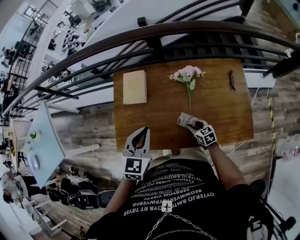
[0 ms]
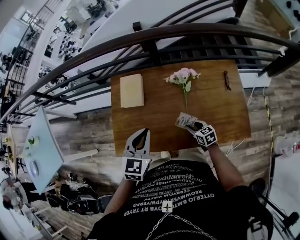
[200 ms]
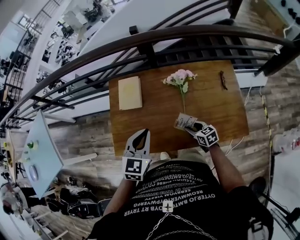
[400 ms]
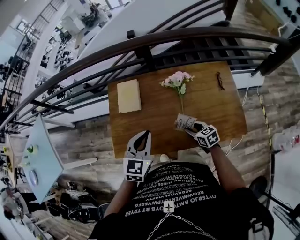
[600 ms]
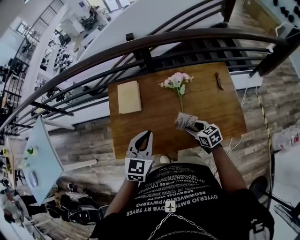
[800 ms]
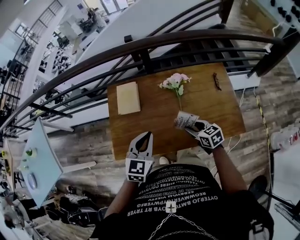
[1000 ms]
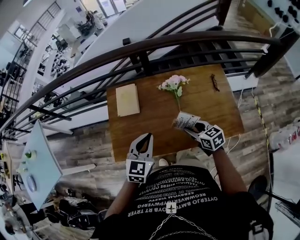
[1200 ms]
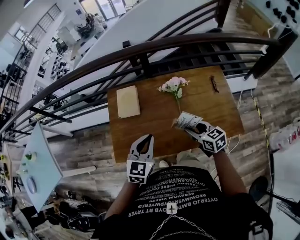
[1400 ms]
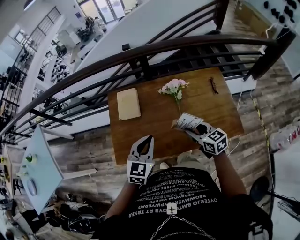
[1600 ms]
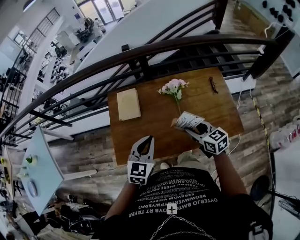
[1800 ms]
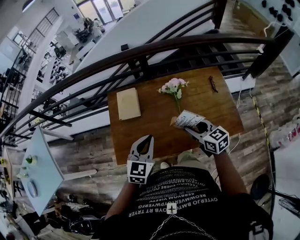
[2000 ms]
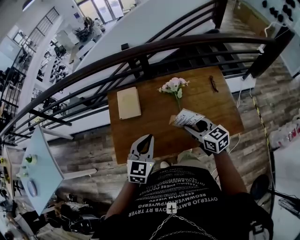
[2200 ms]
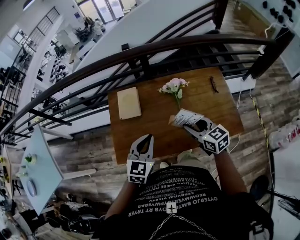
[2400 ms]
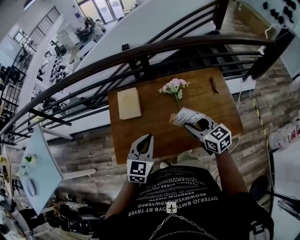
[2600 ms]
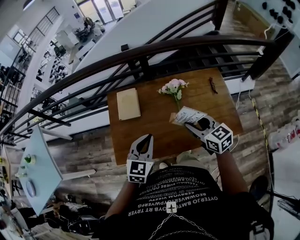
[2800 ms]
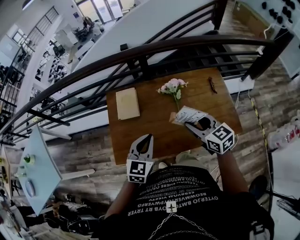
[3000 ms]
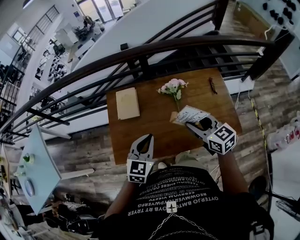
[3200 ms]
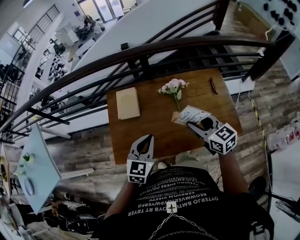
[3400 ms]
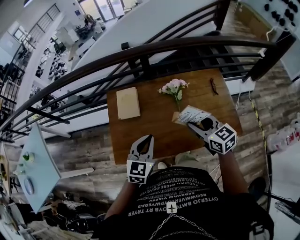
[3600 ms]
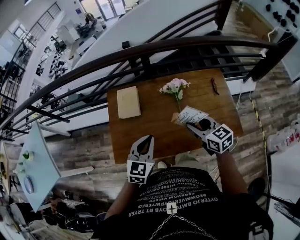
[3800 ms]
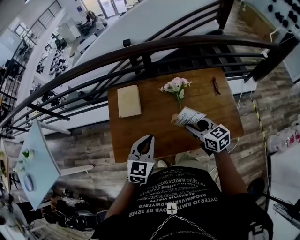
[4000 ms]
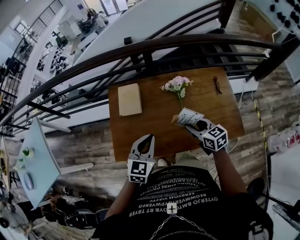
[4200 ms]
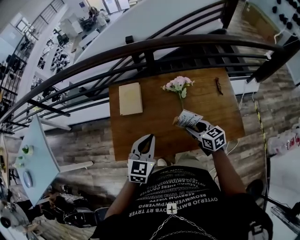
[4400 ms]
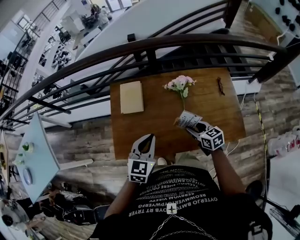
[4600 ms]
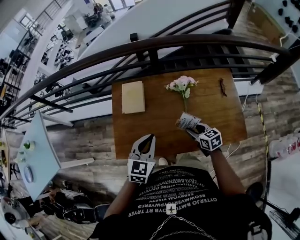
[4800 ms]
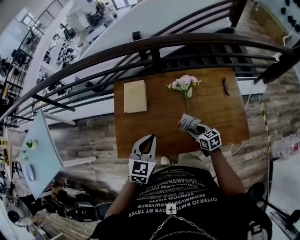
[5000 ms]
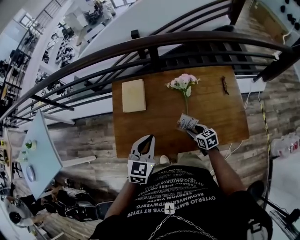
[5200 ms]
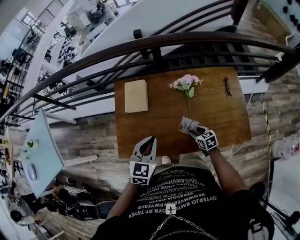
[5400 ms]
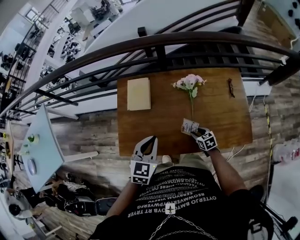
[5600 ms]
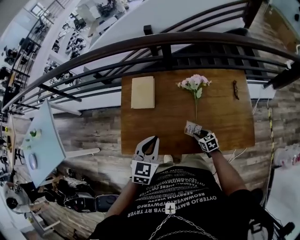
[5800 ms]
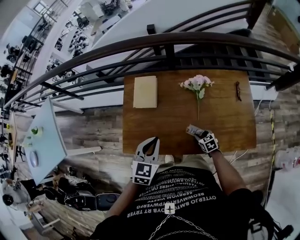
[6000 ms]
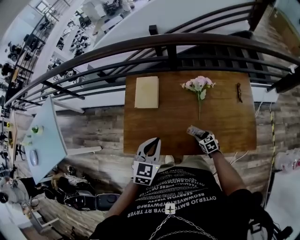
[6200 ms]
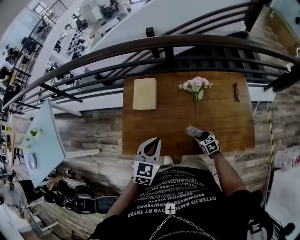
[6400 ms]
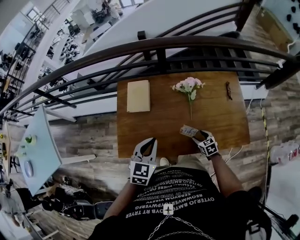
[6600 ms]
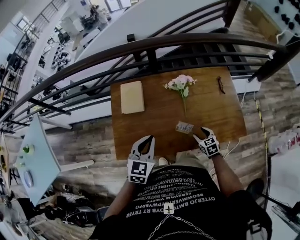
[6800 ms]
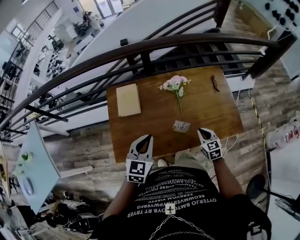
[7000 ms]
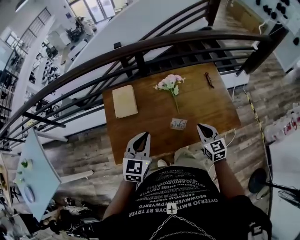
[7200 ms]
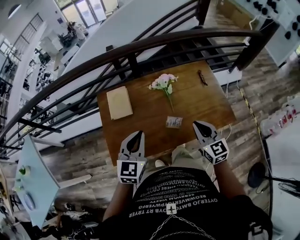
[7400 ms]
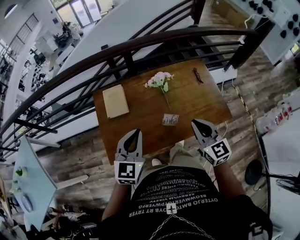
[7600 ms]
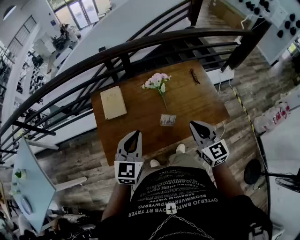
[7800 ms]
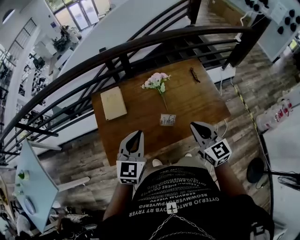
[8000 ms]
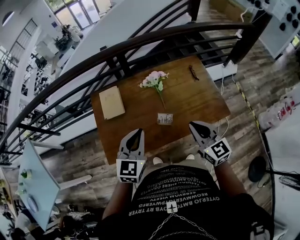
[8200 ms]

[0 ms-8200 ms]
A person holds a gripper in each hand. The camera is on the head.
0 ms to 1600 ms: The left gripper moves backward, some 5 cm. Meanwhile the right gripper heads upward, covering about 25 cm.
1600 ms to 3200 ms: The right gripper shifts roughly 10 cm upward.
3200 ms to 5000 ms: The right gripper travels downward by approximately 25 cm, and rotates about 20 degrees.
5000 ms to 6600 ms: The right gripper is displaced downward by approximately 10 cm.
6600 ms to 8200 ms: The right gripper goes about 35 cm upward, angles its fingers upward, by approximately 40 degrees, and closes its fingers, while the left gripper travels upward and to the right by about 10 cm.

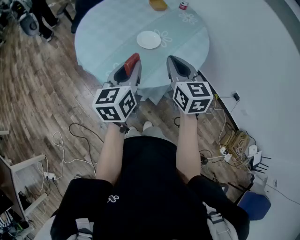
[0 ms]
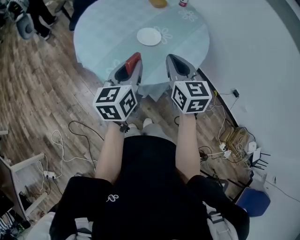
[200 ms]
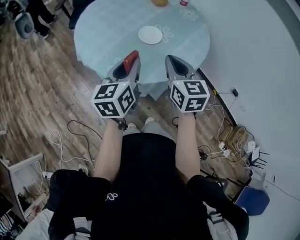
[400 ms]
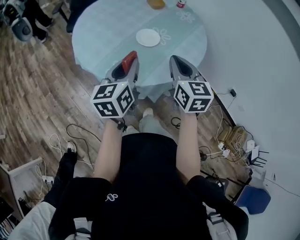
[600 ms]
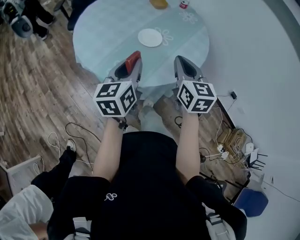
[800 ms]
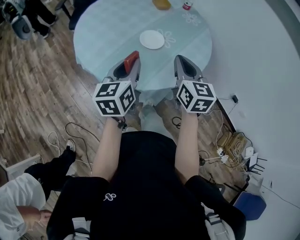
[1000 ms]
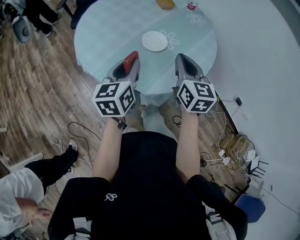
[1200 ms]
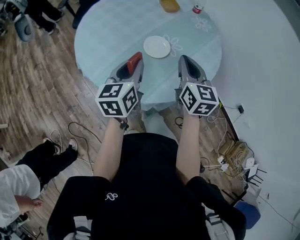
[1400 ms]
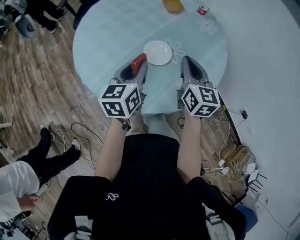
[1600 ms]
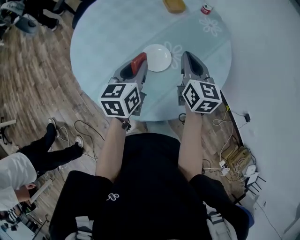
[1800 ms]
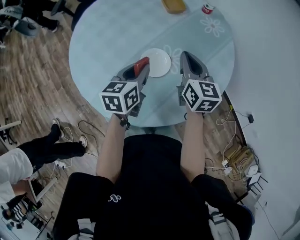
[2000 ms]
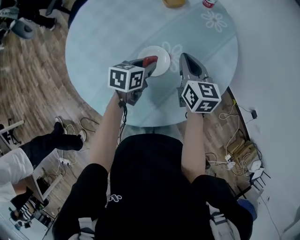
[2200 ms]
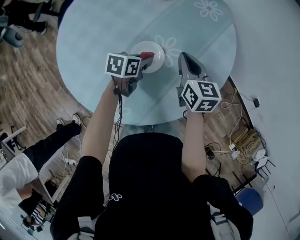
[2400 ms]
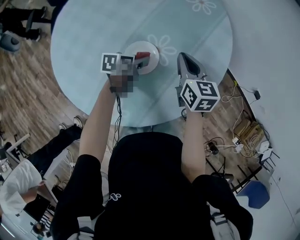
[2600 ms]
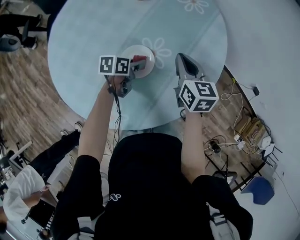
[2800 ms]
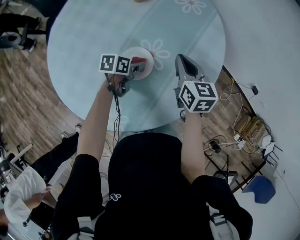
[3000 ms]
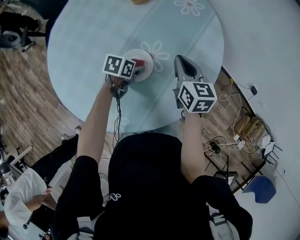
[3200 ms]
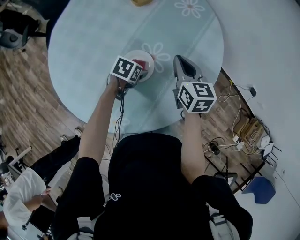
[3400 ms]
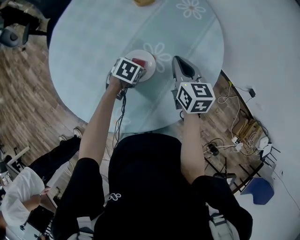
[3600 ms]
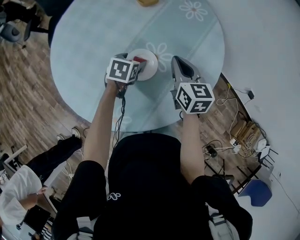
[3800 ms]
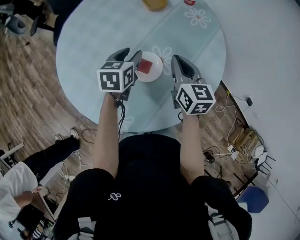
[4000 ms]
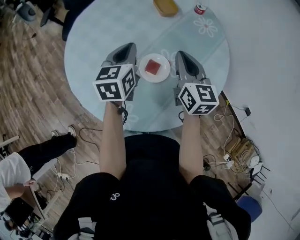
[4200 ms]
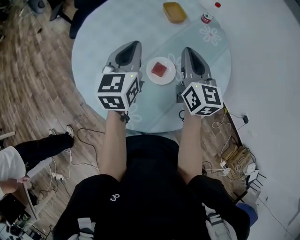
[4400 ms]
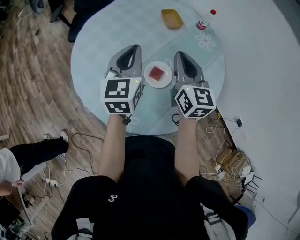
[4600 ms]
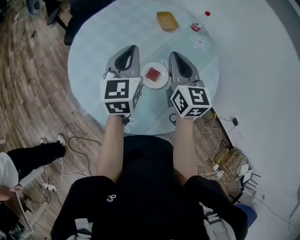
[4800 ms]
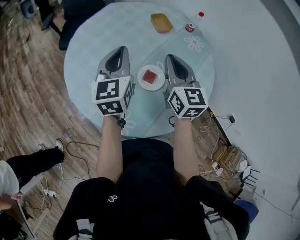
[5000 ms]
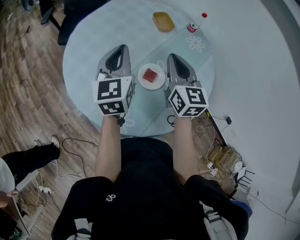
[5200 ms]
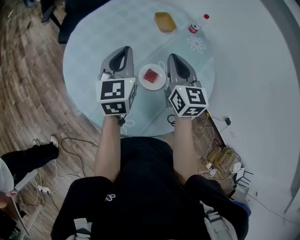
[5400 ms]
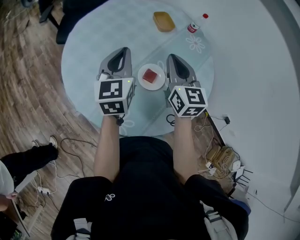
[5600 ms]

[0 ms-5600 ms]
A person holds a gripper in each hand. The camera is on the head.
0 ms to 1400 ms: The right gripper goes some 15 cm forward, while the left gripper shifts roughly 15 cm forward and downward.
1400 ms to 2800 ms: The right gripper moves approximately 25 cm, and changes its angle by some 20 degrees; the left gripper changes place by some 35 cm, and angles its fingers downward, by about 30 degrees.
2800 ms to 4200 ms: The left gripper moves upward, some 25 cm, turns by about 50 degrees, and opens, then closes again, while the right gripper shifts roughly 10 cm upward.
4200 ms to 5600 ms: Both grippers move to the left and upward, some 10 cm.

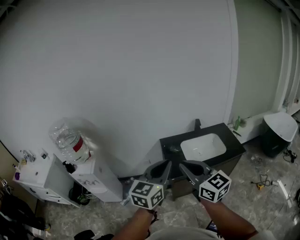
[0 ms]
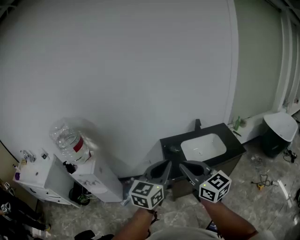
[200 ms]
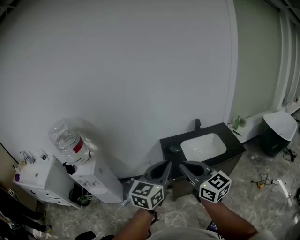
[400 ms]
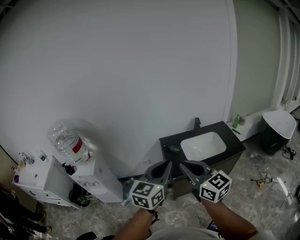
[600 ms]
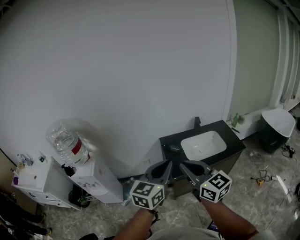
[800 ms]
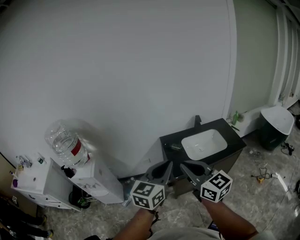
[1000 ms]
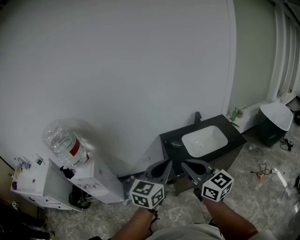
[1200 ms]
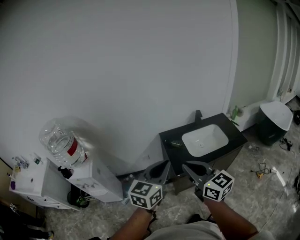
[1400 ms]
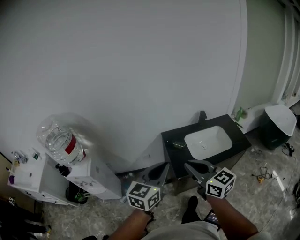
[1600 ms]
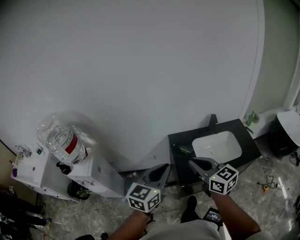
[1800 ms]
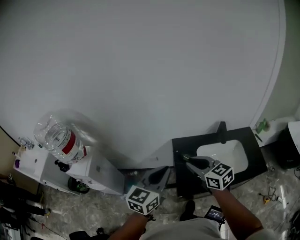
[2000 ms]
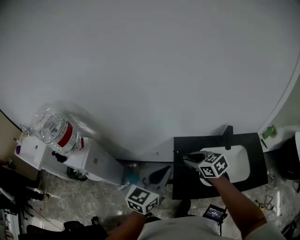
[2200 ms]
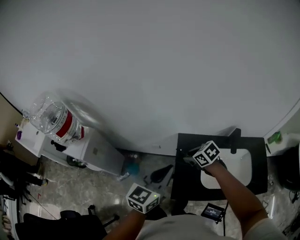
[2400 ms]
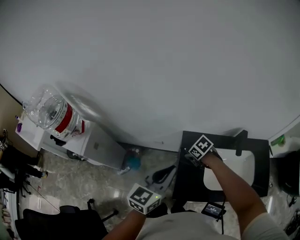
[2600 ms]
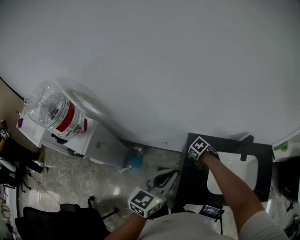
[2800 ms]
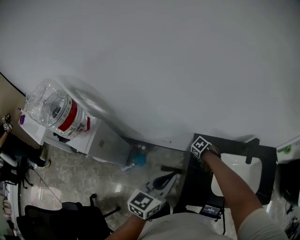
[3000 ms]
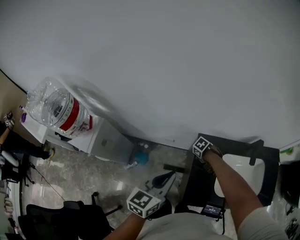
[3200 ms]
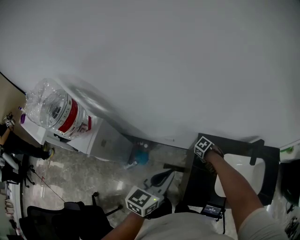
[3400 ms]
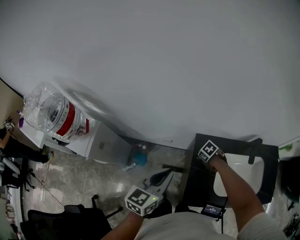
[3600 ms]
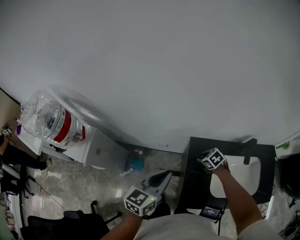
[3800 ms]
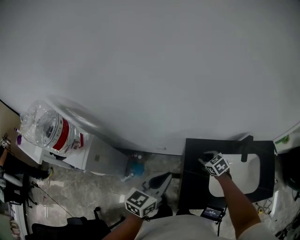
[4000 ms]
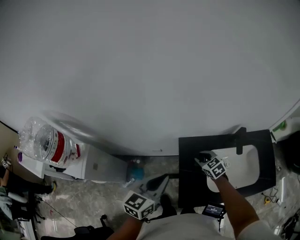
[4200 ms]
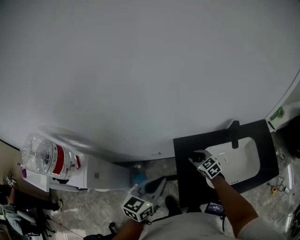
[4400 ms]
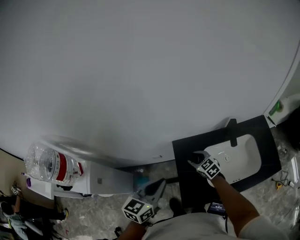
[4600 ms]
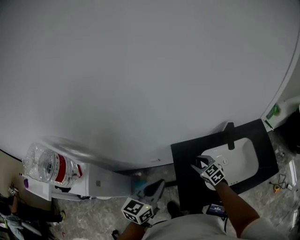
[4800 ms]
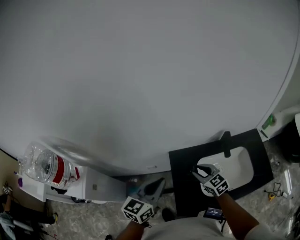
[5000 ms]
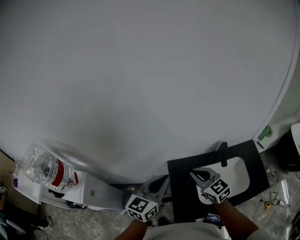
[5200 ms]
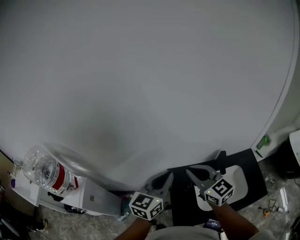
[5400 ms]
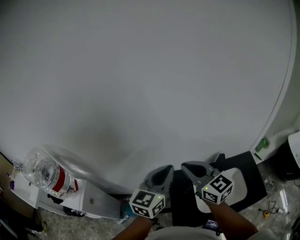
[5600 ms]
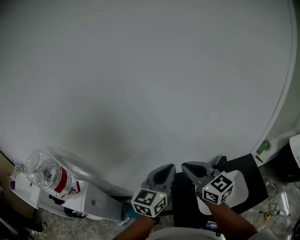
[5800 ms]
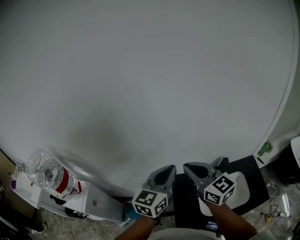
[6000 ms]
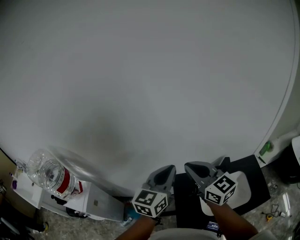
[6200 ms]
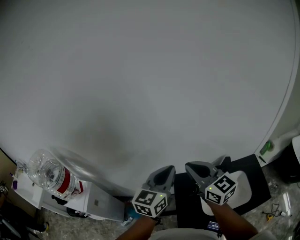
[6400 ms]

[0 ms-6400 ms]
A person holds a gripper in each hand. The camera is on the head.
0 ms to 1600 ms: The left gripper is displaced forward, downward and to the left by roughly 15 cm. The right gripper heads forward and downward, covering approximately 15 cm.
1600 ms to 3200 ms: The left gripper ends up approximately 35 cm from where it was, and changes its angle by approximately 20 degrees. The right gripper shifts approximately 50 cm downward, tips its fingers downward by about 70 degrees, and opens.
3200 ms to 4800 ms: The right gripper shifts approximately 15 cm upward, and points its fingers some 40 degrees further upward. The left gripper ends up some 10 cm from where it was.
4800 ms to 6400 ms: The left gripper moves upward and forward, some 20 cm. Meanwhile the right gripper is displaced upward by roughly 35 cm, tilts its fingers some 30 degrees upward, and closes its fingers.

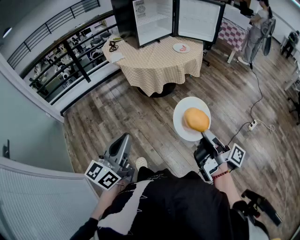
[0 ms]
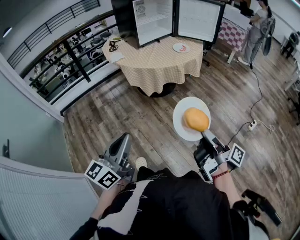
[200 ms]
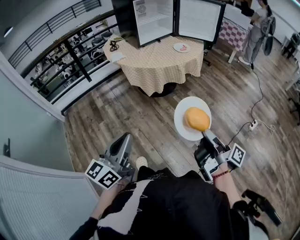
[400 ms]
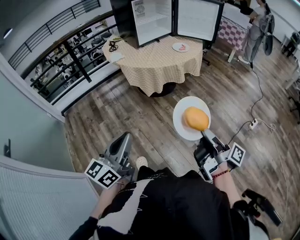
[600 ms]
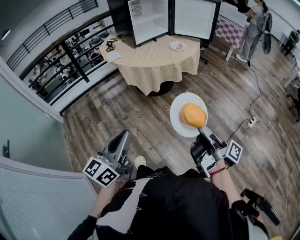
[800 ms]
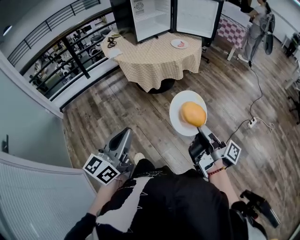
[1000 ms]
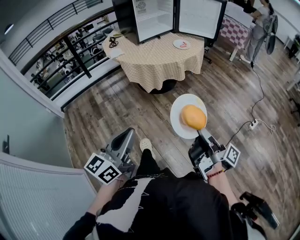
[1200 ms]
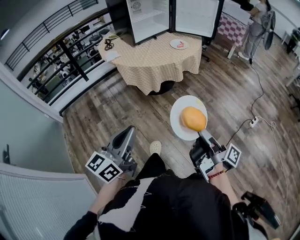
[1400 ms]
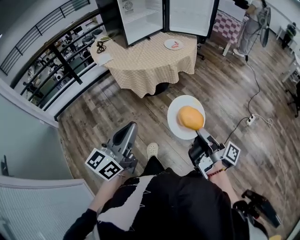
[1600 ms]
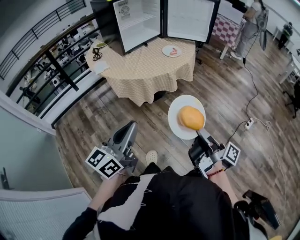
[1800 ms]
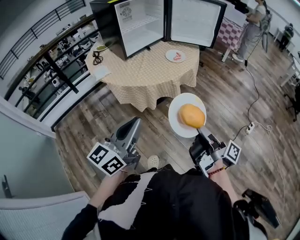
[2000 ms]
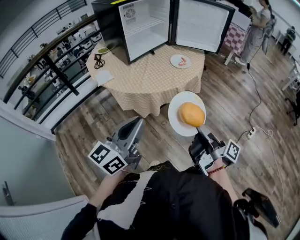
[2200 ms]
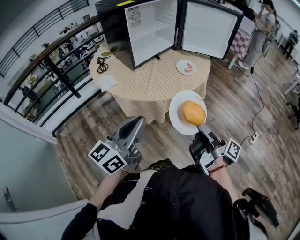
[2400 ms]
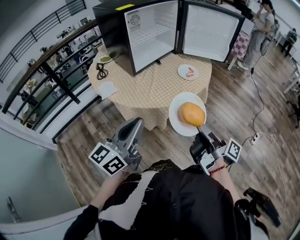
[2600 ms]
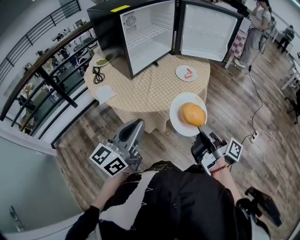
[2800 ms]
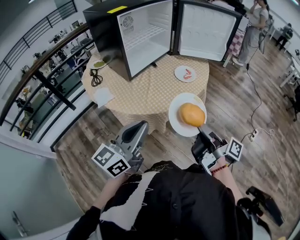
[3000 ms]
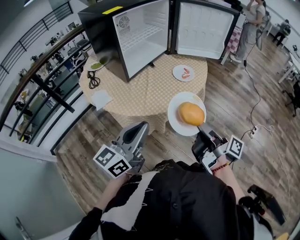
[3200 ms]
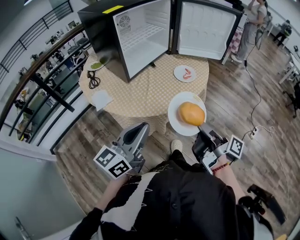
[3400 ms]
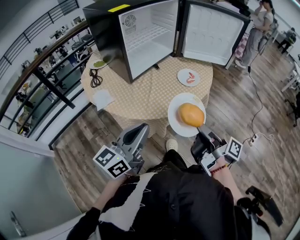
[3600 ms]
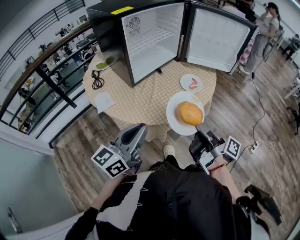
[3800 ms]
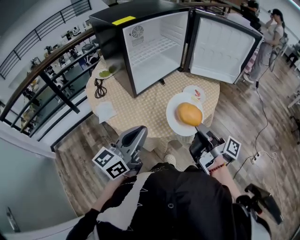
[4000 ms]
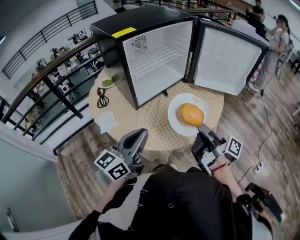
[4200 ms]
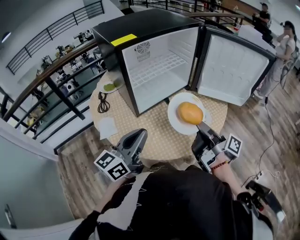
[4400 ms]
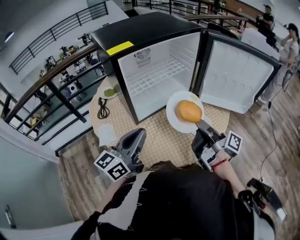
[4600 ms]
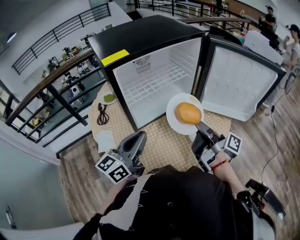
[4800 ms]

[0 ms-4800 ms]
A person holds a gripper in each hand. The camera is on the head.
0 ms to 1600 ms: The left gripper goes approximately 10 cm forward and to the right. Meanwhile the right gripper goes about 5 cm forward.
1600 ms to 3200 ms: The left gripper heads forward, covering about 35 cm. The right gripper goes about 35 cm forward and to the left.
3200 ms to 4800 ms: Both grippers travel together forward, some 30 cm.
